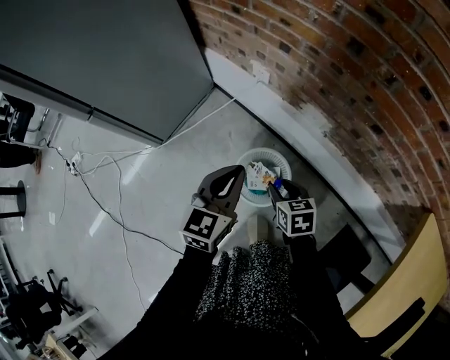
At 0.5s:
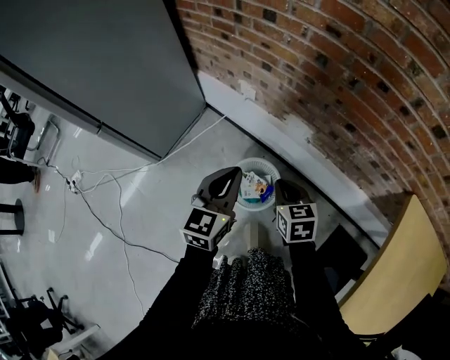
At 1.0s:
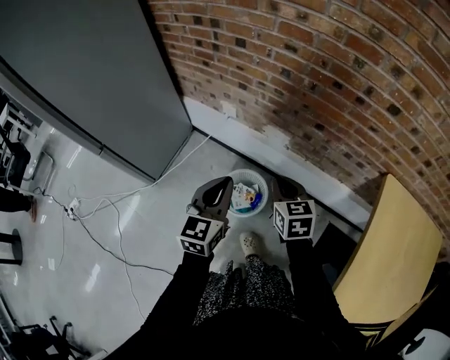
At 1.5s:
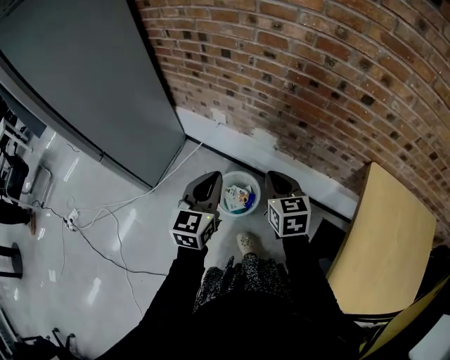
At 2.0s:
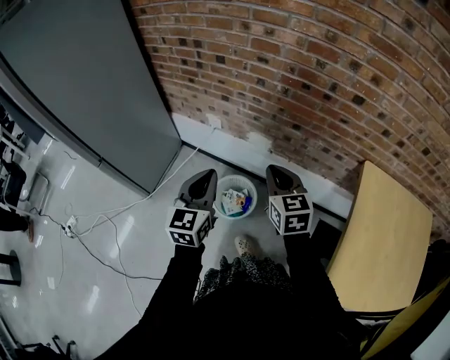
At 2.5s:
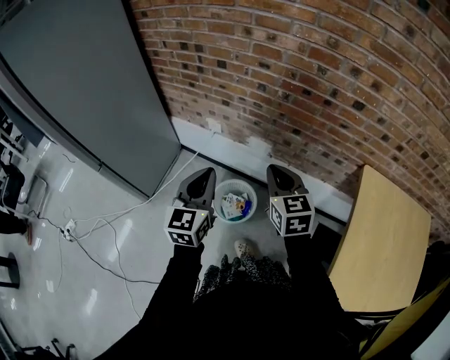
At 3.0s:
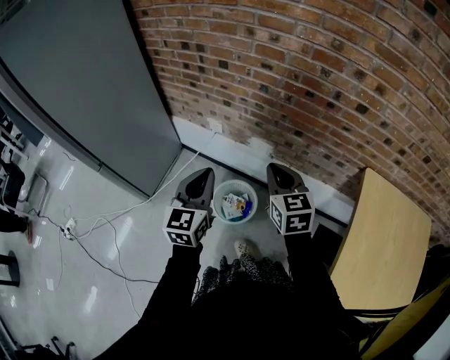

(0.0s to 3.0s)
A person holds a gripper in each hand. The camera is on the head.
0.0s - 1.5s: The right gripper shifts approximately 30 cm upward, swivels some 30 degrees, and closes, while the left gripper moves upward and backward, some 20 cm.
1.5s - 3.0s: The right gripper moves upward, approximately 5 cm.

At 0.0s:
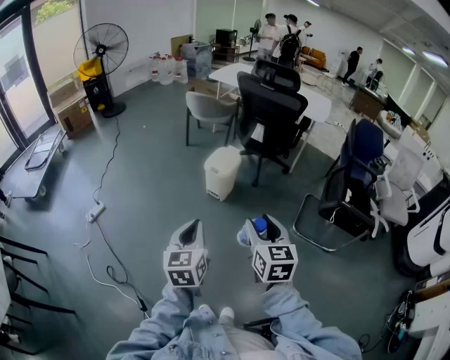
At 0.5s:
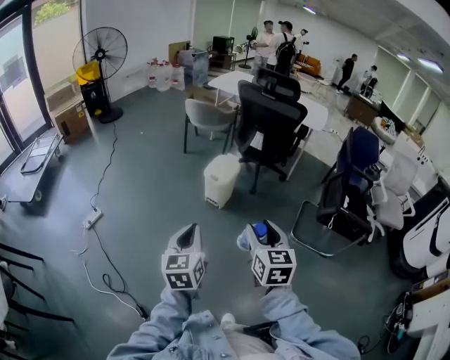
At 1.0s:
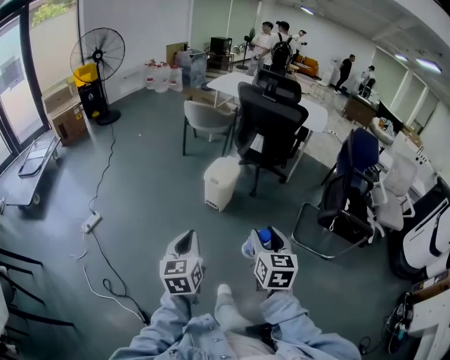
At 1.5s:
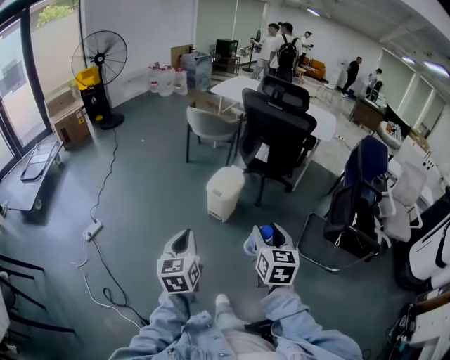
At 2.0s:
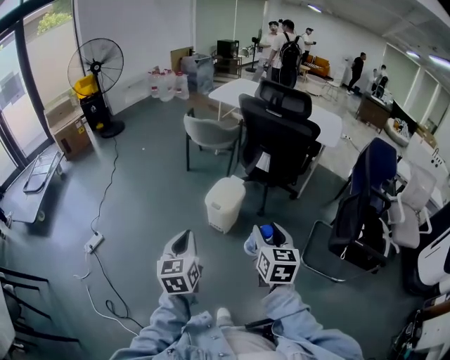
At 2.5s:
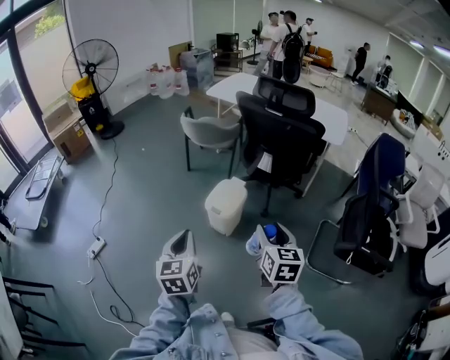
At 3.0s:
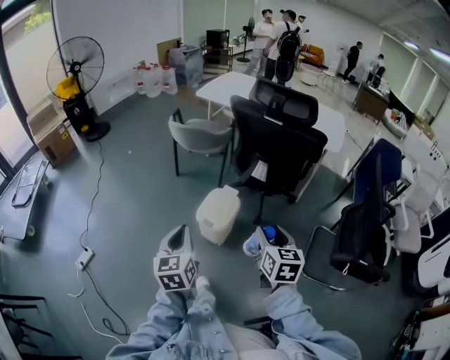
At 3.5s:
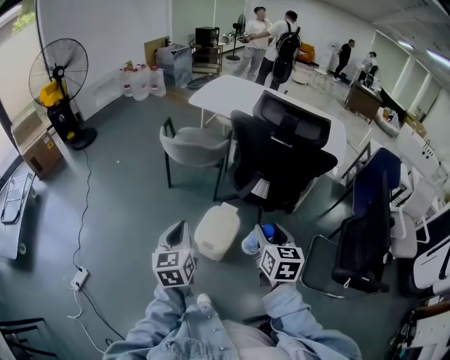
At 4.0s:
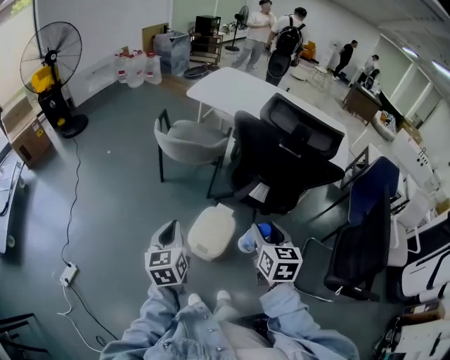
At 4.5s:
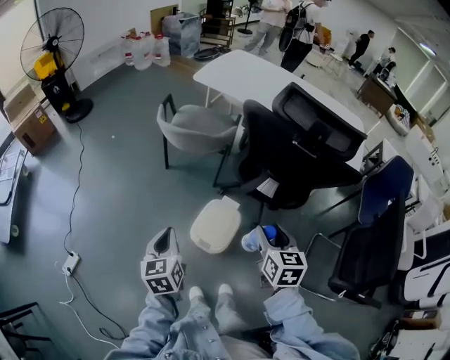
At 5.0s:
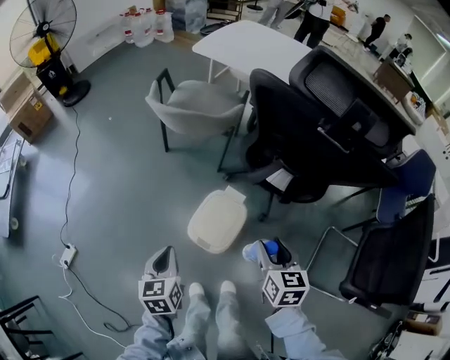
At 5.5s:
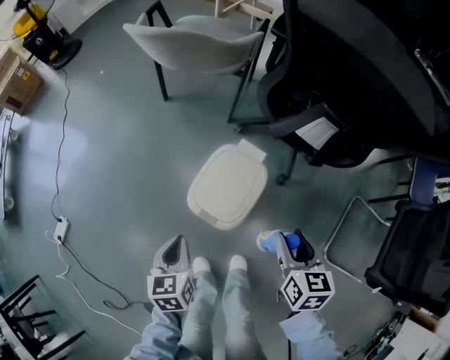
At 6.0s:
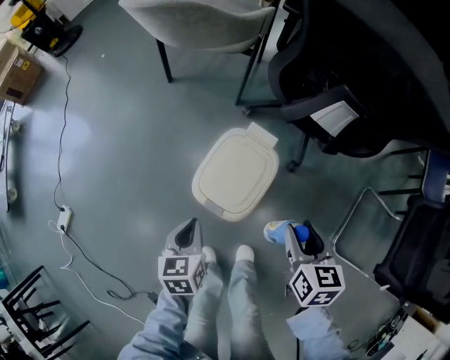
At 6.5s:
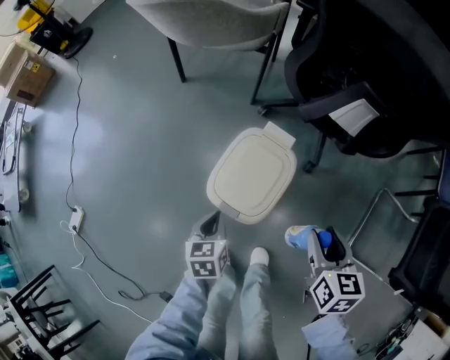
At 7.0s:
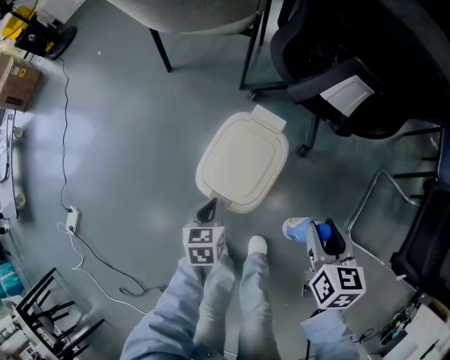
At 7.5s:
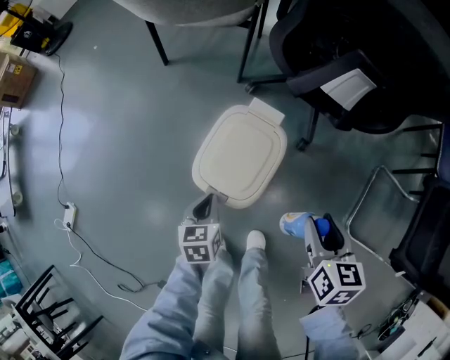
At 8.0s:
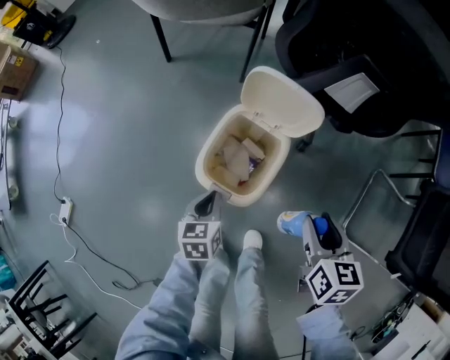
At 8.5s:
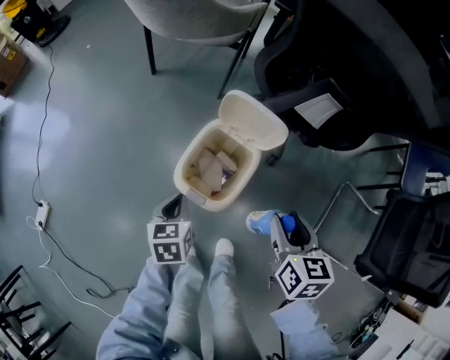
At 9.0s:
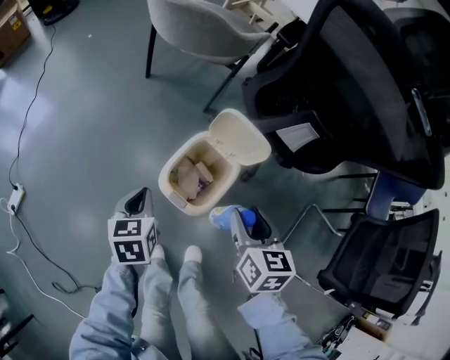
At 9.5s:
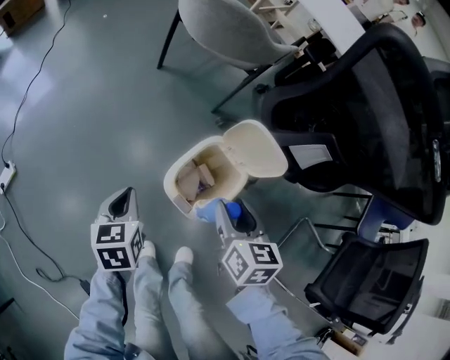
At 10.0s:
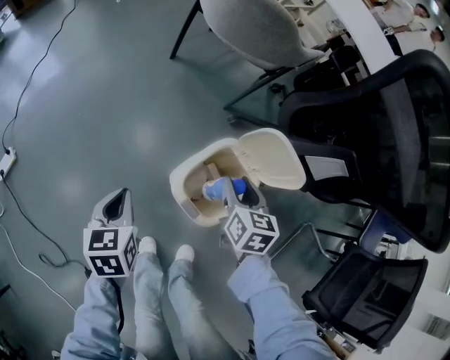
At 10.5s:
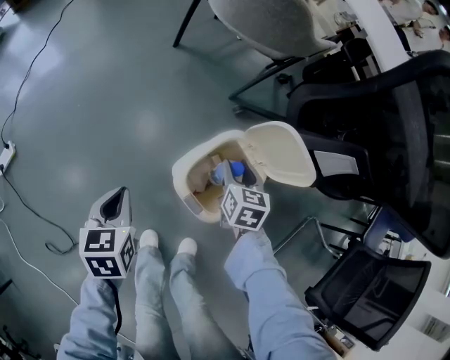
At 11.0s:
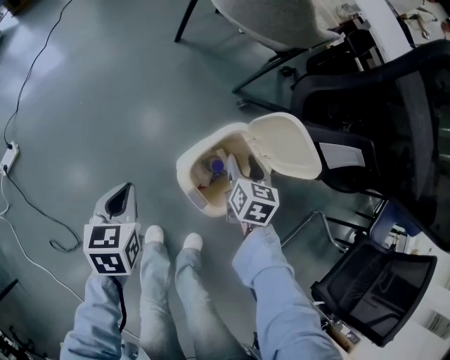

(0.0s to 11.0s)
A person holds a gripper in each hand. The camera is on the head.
0.0s - 2.0s: The two grippers go some 25 cm forward.
2.0s - 3.5s: Both grippers move forward, about 35 cm.
3.5s - 5.5s: Both grippers move downward, roughly 35 cm. The left gripper turns by about 30 degrees.
5.5s - 7.5s: The left gripper is displaced downward by some 15 cm, while the right gripper goes about 5 cm downward.
7.5s - 9.0s: The left gripper travels upward and to the left by some 15 cm; the right gripper travels to the left and upward by about 15 cm.
9.0s - 11.0s: The right gripper heads downward and forward, covering about 25 cm. Meanwhile the left gripper moves to the left and downward, about 10 cm.

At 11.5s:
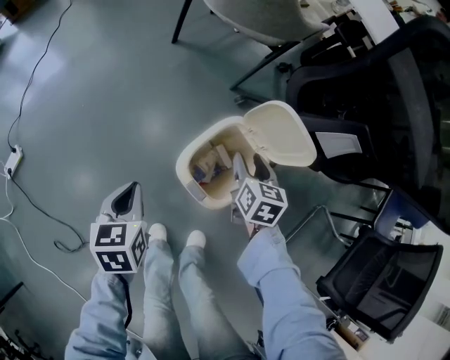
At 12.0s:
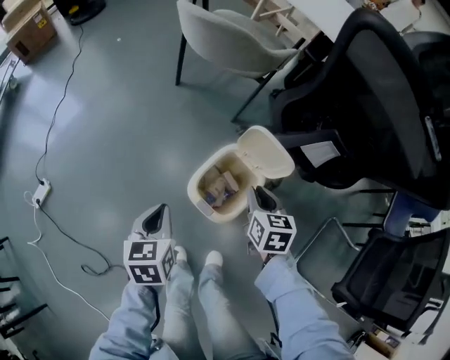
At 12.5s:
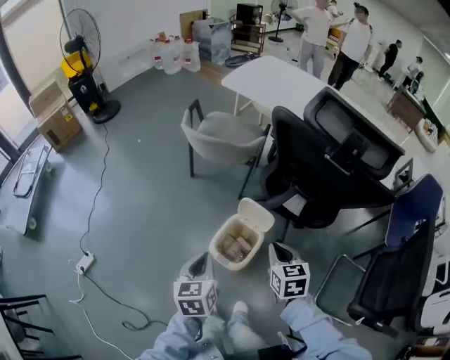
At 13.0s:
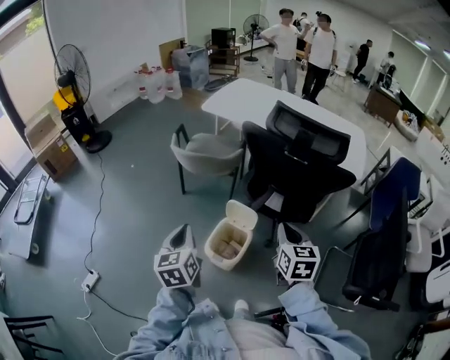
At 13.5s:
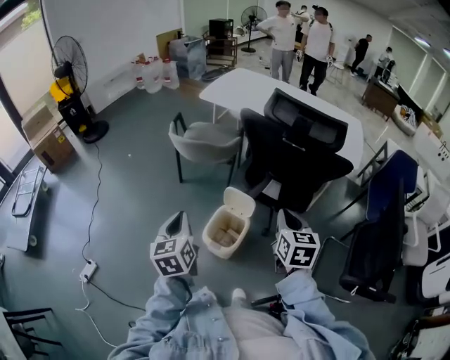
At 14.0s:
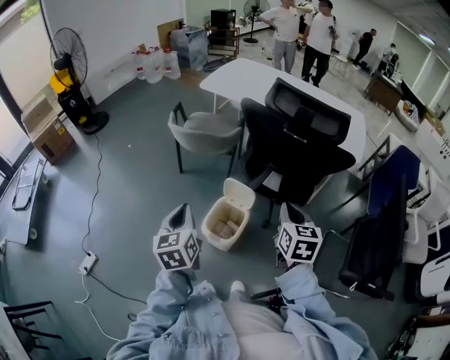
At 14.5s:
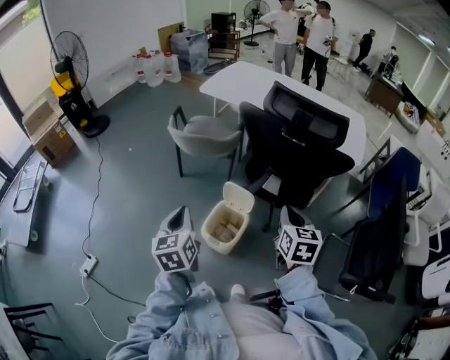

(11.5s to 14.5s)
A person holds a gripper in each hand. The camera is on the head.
11.5s - 13.0s: The grippers both shift upward by about 50 cm. The right gripper turns by roughly 20 degrees, and closes up. The left gripper changes its angle by roughly 30 degrees.
13.0s - 14.5s: The grippers make only small movements.

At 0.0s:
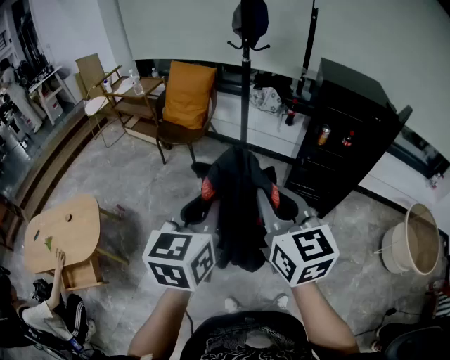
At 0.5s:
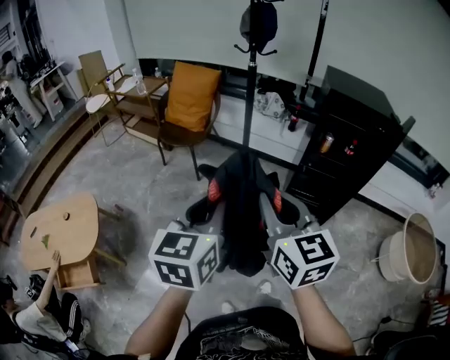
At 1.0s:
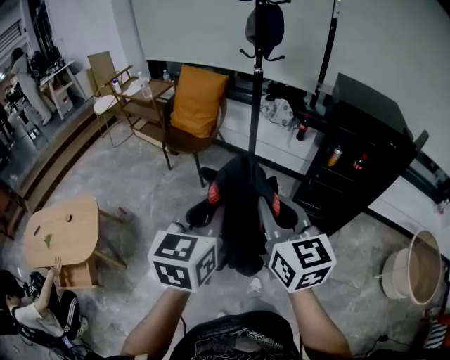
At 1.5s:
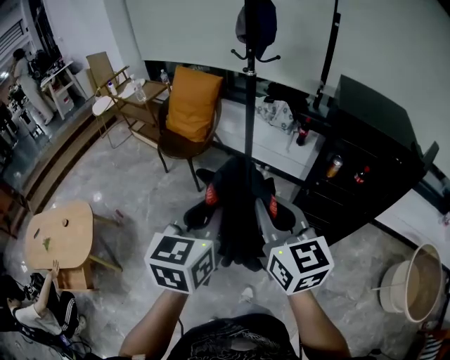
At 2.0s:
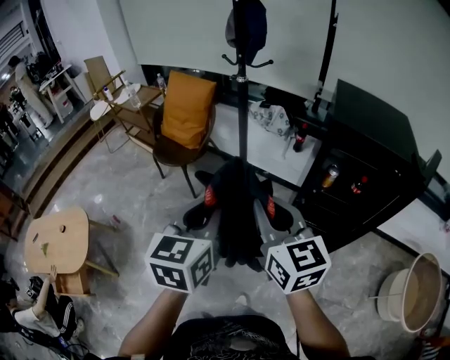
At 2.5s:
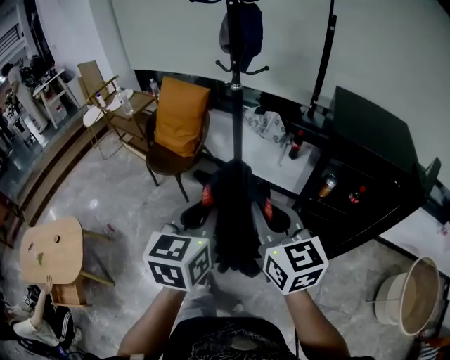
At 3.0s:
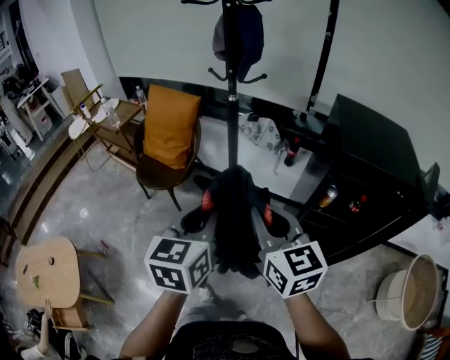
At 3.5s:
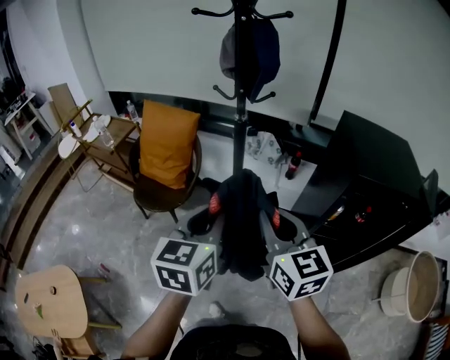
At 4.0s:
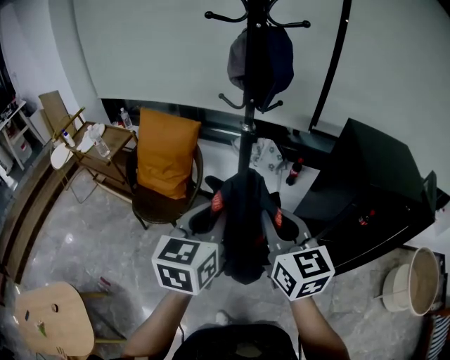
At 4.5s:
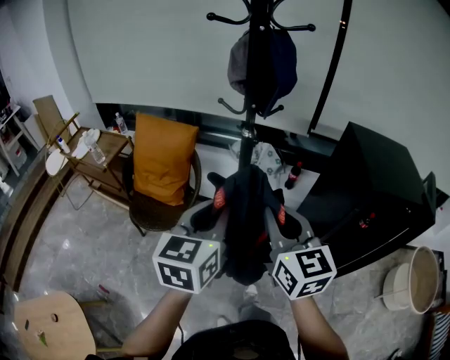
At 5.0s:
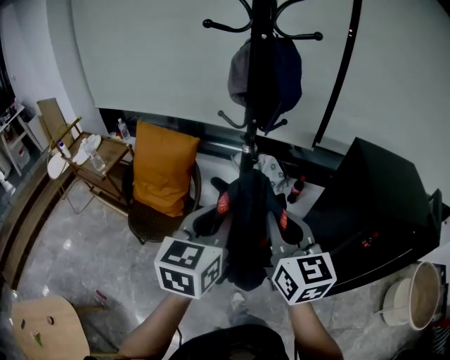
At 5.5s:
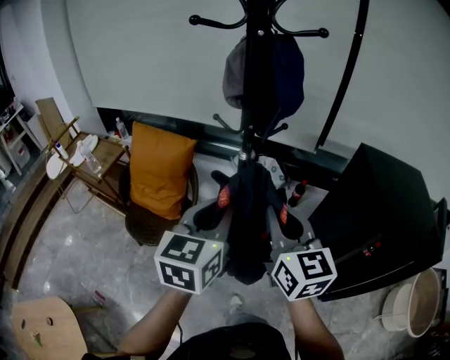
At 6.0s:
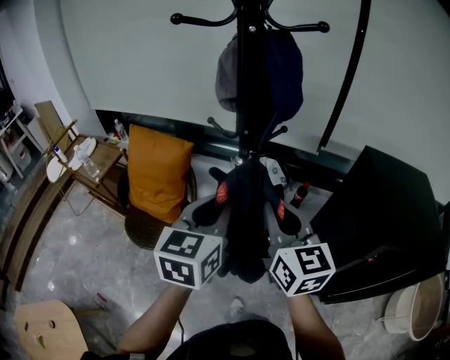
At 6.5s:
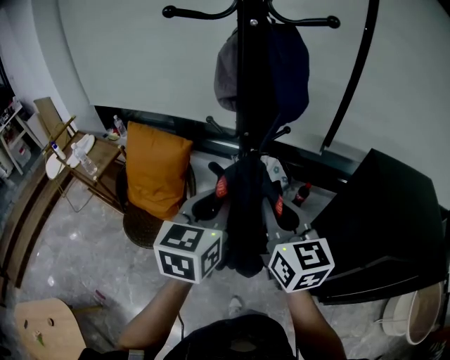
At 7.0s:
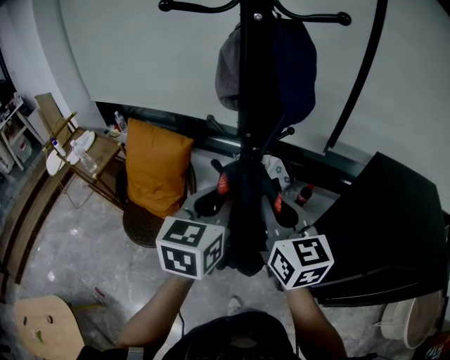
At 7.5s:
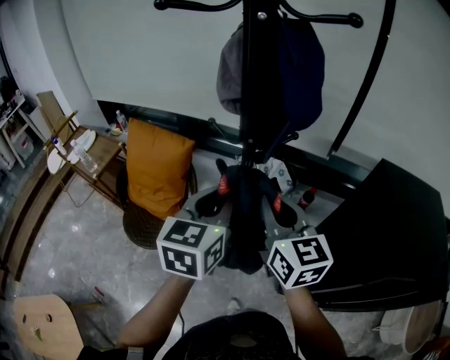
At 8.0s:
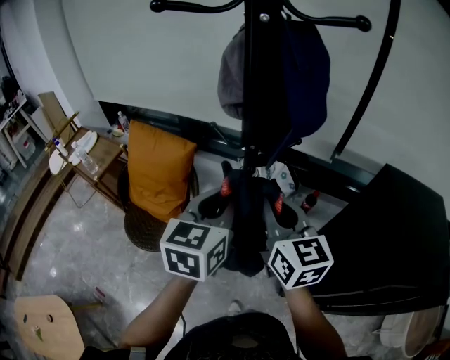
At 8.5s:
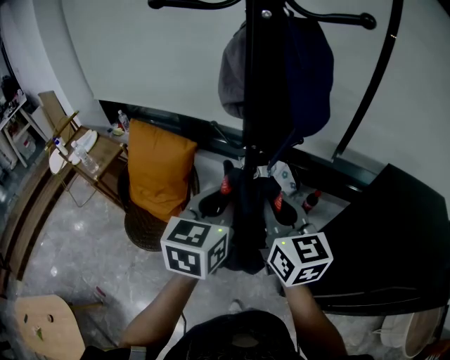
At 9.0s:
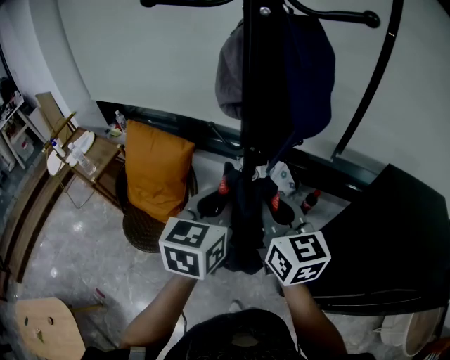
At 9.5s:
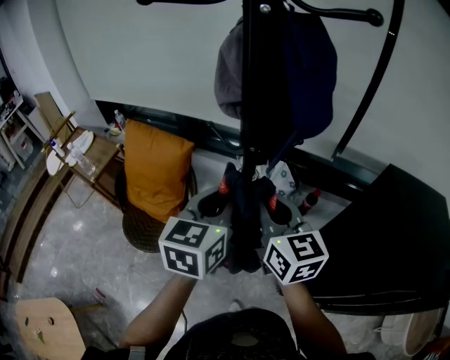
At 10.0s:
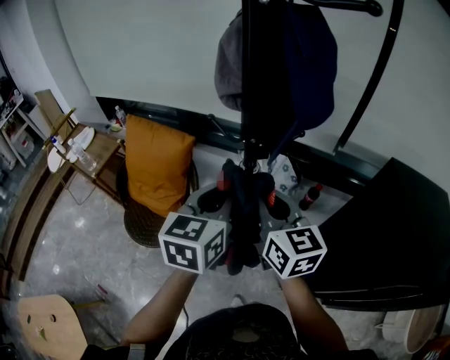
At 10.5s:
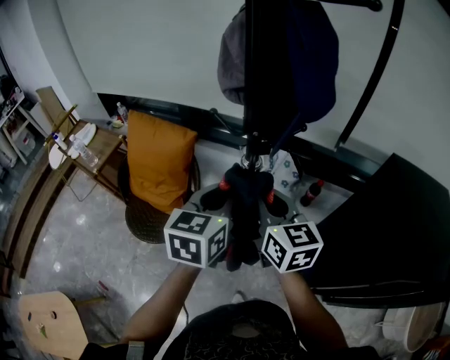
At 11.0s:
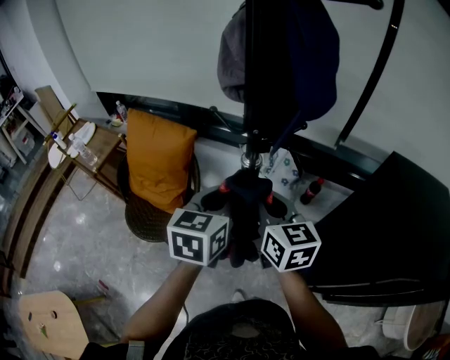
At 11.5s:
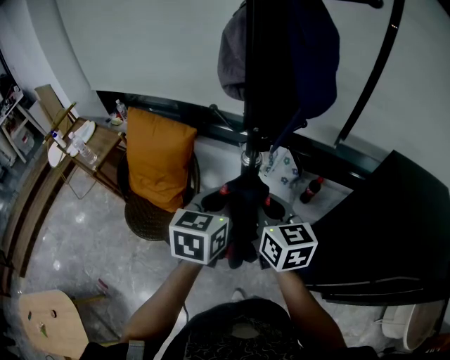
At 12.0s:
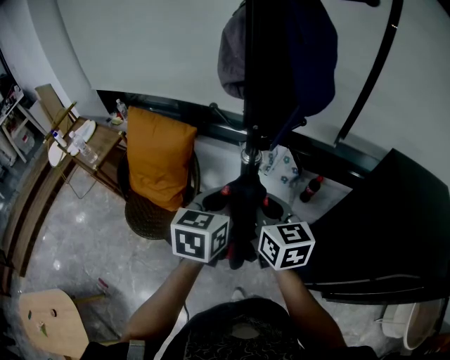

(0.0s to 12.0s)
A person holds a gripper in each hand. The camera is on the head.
0.0s - 2.0s: The two grippers go some 25 cm forward and to the right.
2.0s - 4.0s: Both grippers travel together forward and to the left, approximately 30 cm.
4.0s - 6.0s: Both grippers move forward, some 20 cm.
6.0s - 8.0s: Both grippers move forward, some 10 cm.
8.0s - 10.0s: The grippers move only a little.
10.0s - 12.0s: The grippers both shift downward by some 5 cm.
